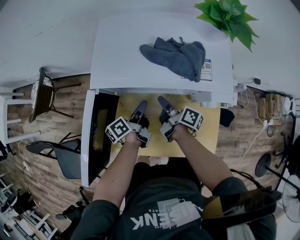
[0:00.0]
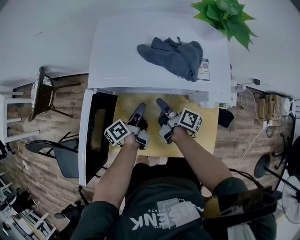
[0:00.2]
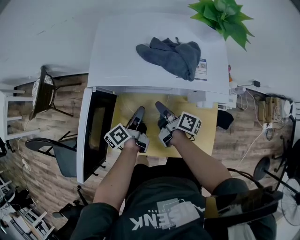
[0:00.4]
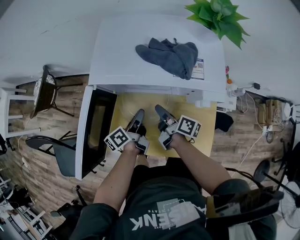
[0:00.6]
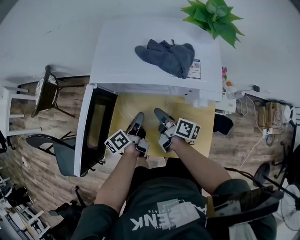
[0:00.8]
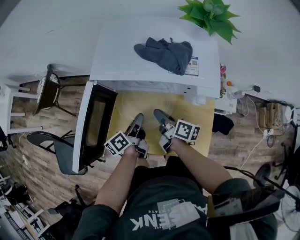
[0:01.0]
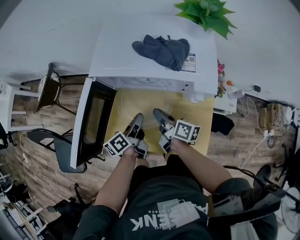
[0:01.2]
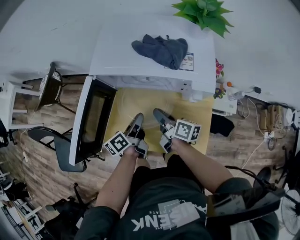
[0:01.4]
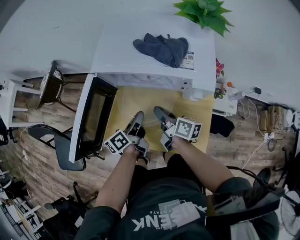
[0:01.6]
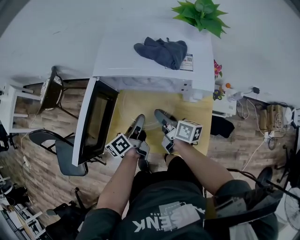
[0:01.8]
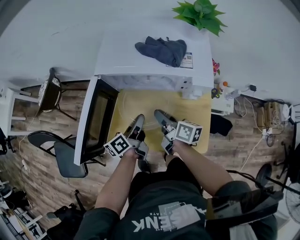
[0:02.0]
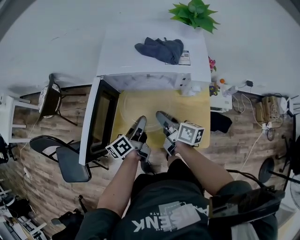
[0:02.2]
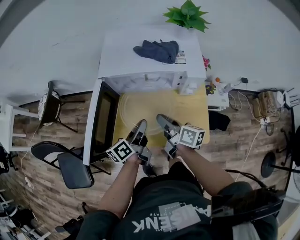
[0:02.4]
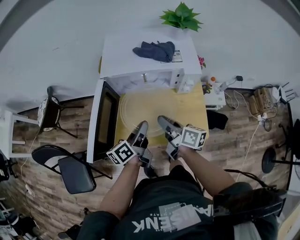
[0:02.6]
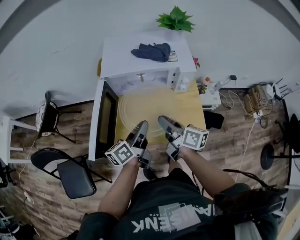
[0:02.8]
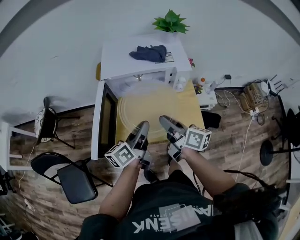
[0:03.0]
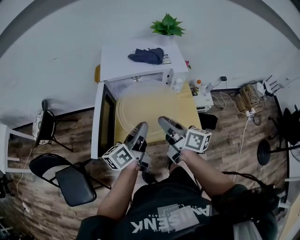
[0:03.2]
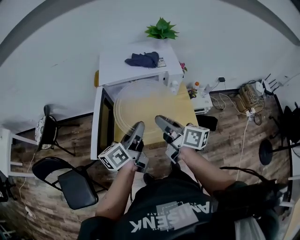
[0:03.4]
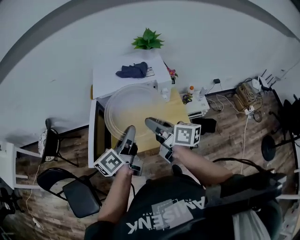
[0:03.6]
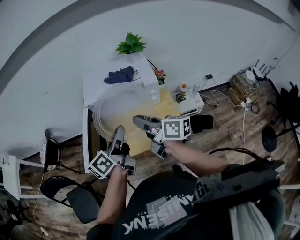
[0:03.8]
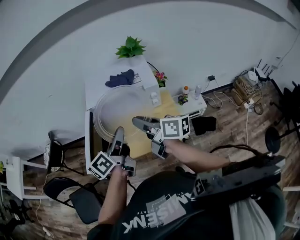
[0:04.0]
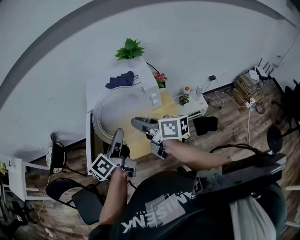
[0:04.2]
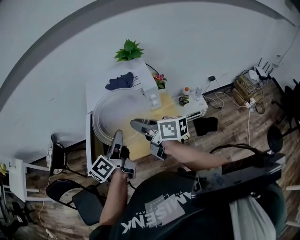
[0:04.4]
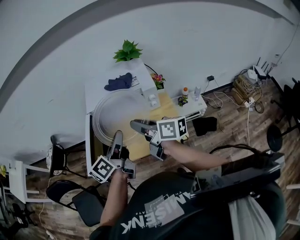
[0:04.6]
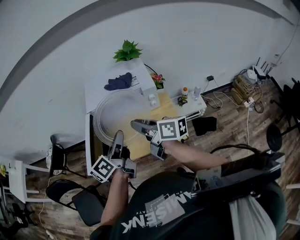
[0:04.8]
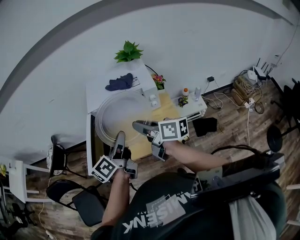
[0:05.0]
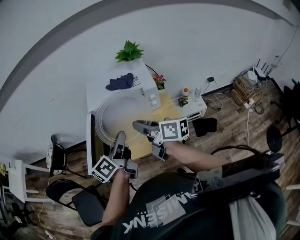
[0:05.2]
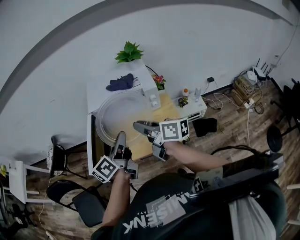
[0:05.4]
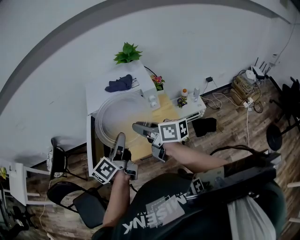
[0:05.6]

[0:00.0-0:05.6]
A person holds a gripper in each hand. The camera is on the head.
0:00.0 to 0:01.4: Both grippers move backward, roughly 10 cm. The right gripper rotates some 20 degrees.
0:01.4 to 0:02.8: Both grippers travel together upward and backward, approximately 15 cm. The left gripper swivels approximately 20 degrees.
0:02.8 to 0:04.2: The two grippers go roughly 15 cm upward.
0:04.2 to 0:05.6: The grippers stay close to where they were, moving slightly.

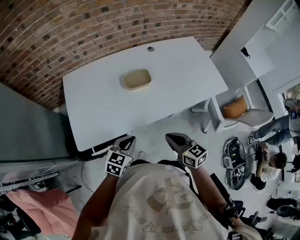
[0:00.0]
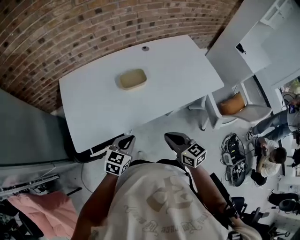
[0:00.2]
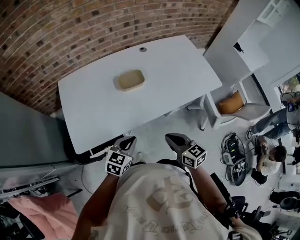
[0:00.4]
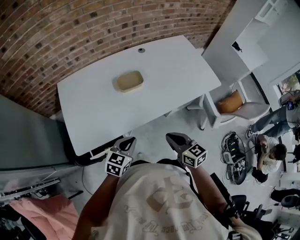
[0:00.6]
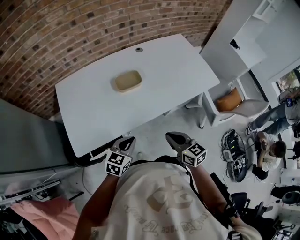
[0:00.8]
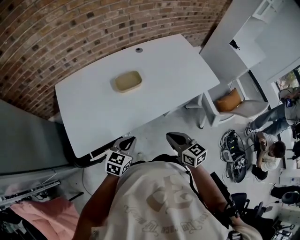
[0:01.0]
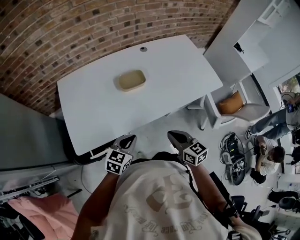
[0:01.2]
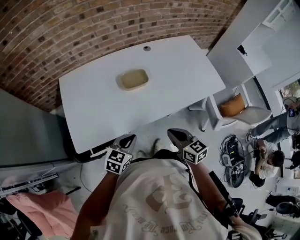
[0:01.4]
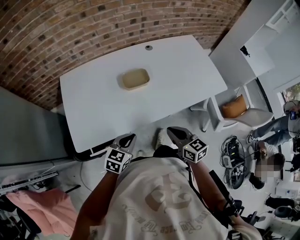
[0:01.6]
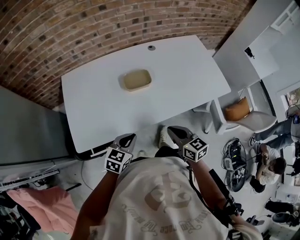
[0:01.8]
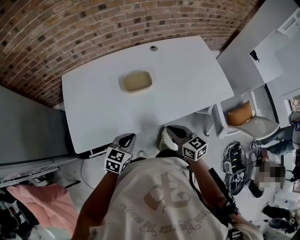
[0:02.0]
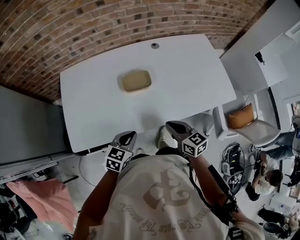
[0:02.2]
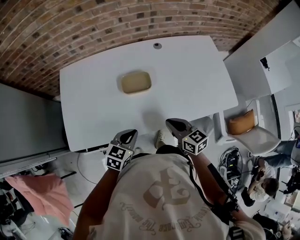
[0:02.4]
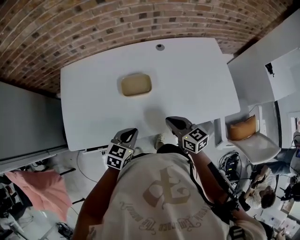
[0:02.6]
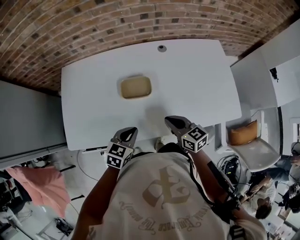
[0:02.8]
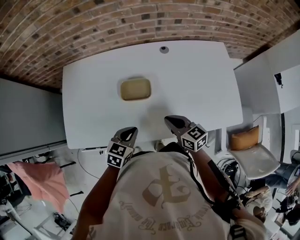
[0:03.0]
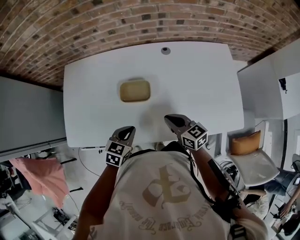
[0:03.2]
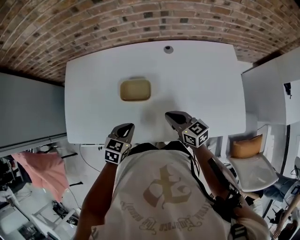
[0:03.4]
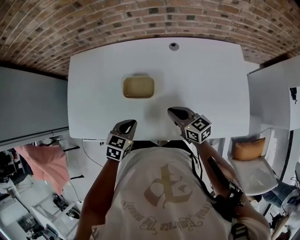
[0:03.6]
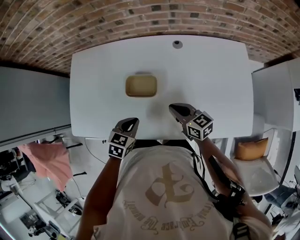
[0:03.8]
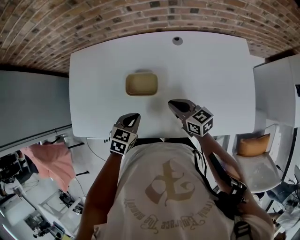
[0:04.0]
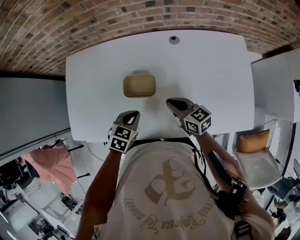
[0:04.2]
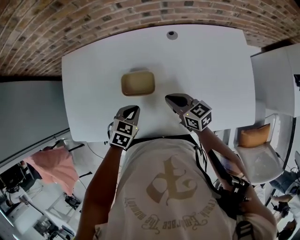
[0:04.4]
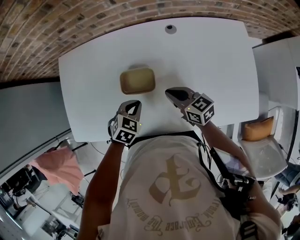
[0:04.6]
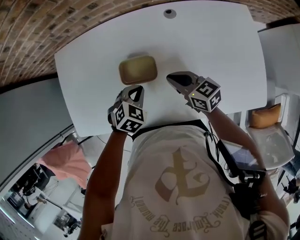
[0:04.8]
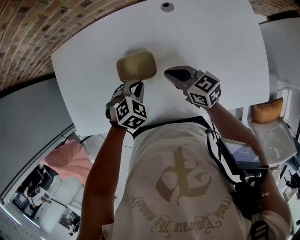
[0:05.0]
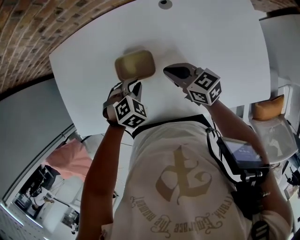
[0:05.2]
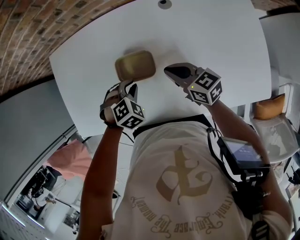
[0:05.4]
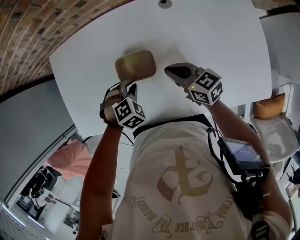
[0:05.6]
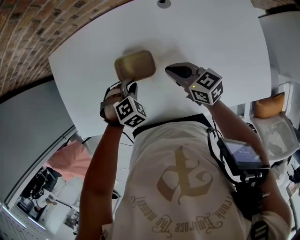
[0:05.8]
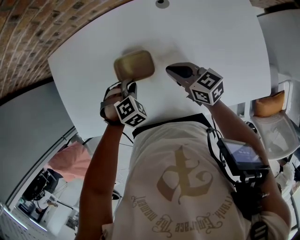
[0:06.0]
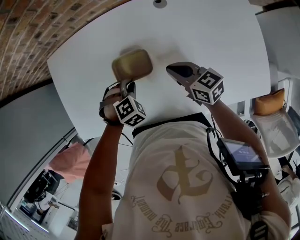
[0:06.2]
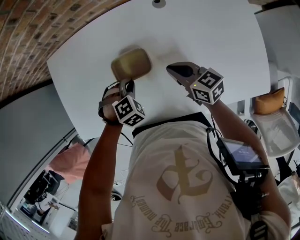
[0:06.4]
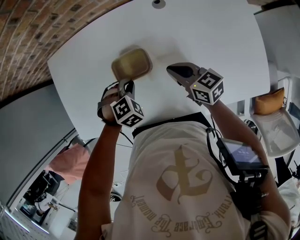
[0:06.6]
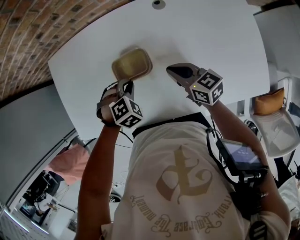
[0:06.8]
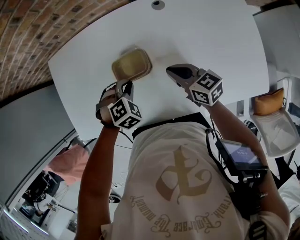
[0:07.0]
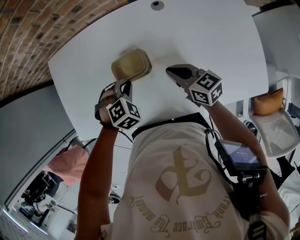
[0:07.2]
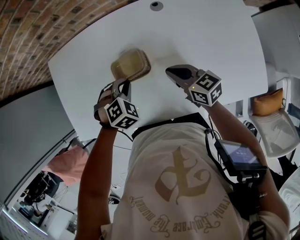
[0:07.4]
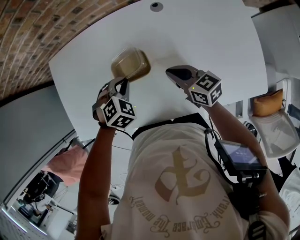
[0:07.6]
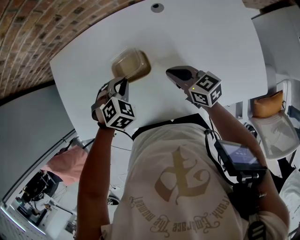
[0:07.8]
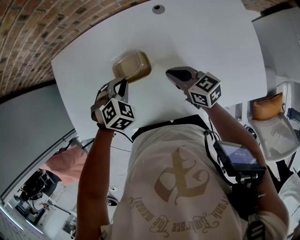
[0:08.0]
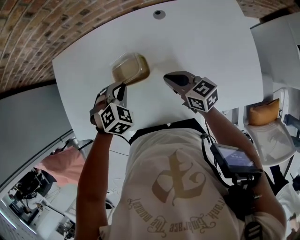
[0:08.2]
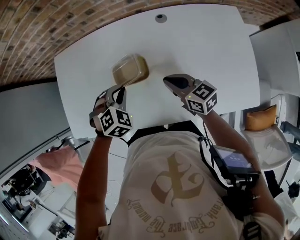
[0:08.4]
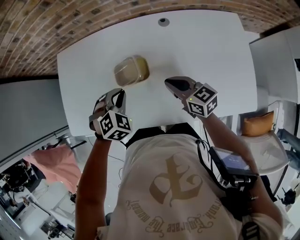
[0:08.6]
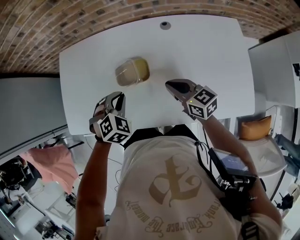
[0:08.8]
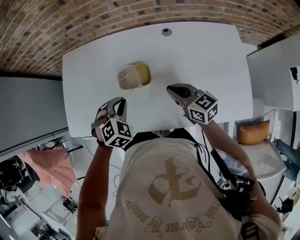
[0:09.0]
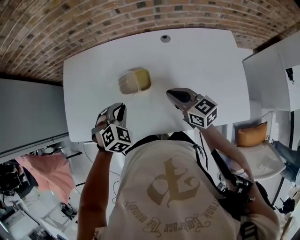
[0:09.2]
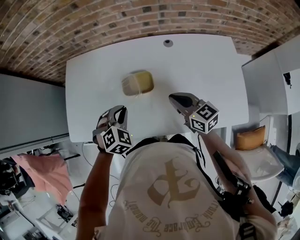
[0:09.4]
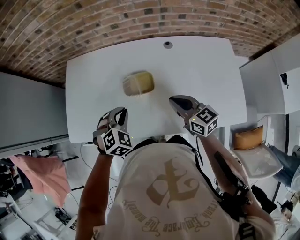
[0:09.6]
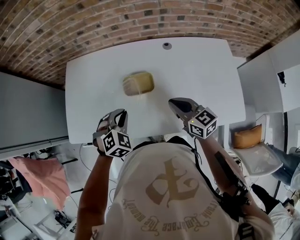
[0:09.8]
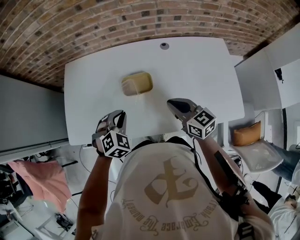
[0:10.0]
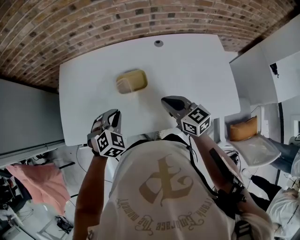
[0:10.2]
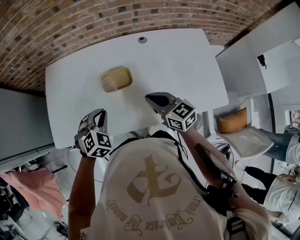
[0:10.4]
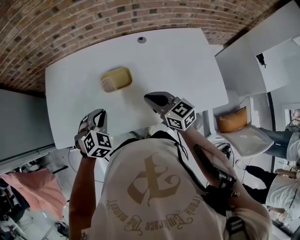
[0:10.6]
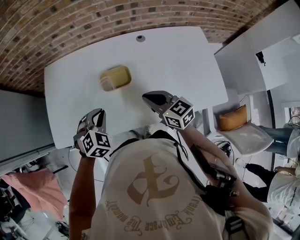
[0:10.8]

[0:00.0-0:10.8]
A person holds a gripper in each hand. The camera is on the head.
0:00.0 to 0:01.6: The grippers move only a little.
0:01.6 to 0:03.0: The right gripper goes some 20 cm forward, and swivels approximately 20 degrees; the left gripper shifts some 20 cm forward and to the right.
0:03.0 to 0:04.6: The right gripper shifts roughly 10 cm forward, while the left gripper heads forward and downward, covering approximately 10 cm, and swivels about 20 degrees.
0:04.6 to 0:06.2: The left gripper goes some 5 cm downward, and changes its angle by some 40 degrees.
0:06.2 to 0:07.8: The left gripper heads upward, covering some 5 cm.
0:07.8 to 0:09.2: The left gripper moves backward and upward, some 10 cm. Meanwhile the right gripper goes approximately 10 cm upward.
0:09.2 to 0:10.8: The left gripper shifts by roughly 5 cm. The right gripper travels to the left by some 5 cm.

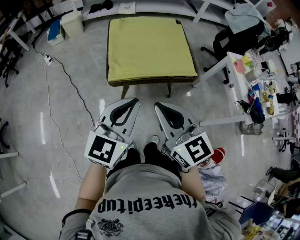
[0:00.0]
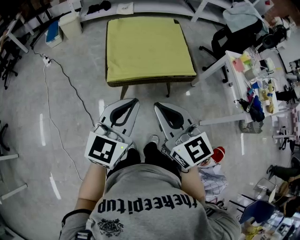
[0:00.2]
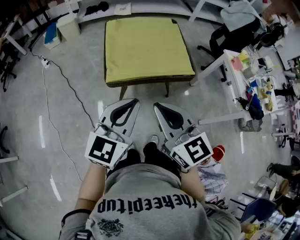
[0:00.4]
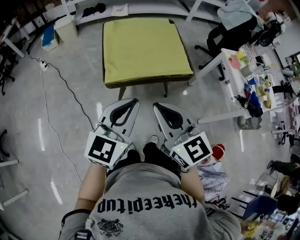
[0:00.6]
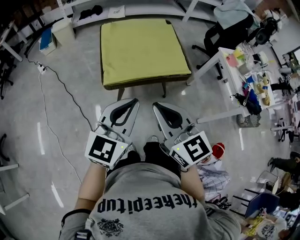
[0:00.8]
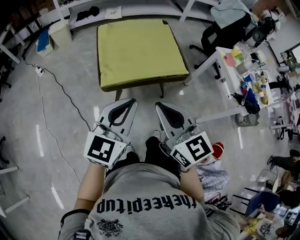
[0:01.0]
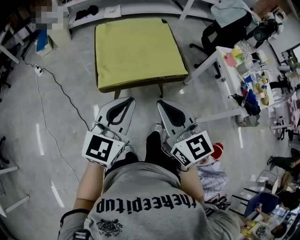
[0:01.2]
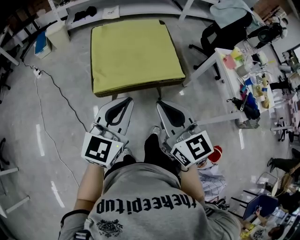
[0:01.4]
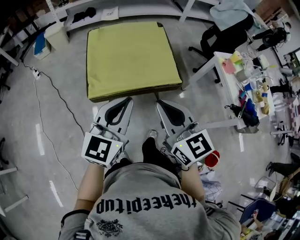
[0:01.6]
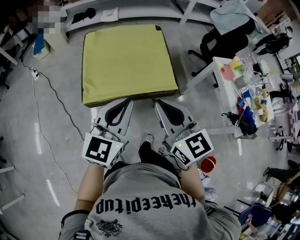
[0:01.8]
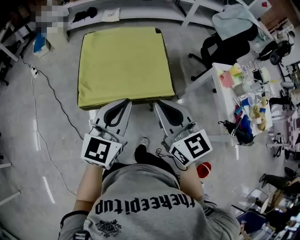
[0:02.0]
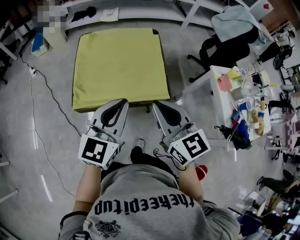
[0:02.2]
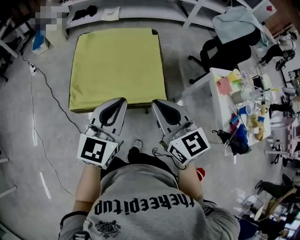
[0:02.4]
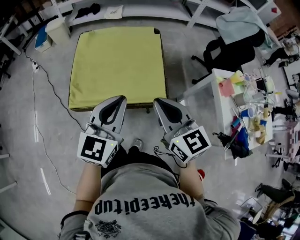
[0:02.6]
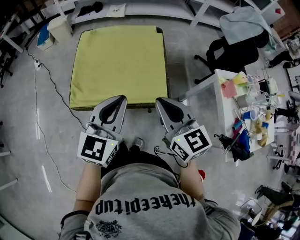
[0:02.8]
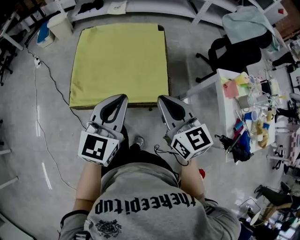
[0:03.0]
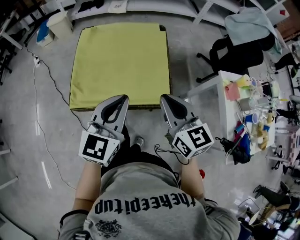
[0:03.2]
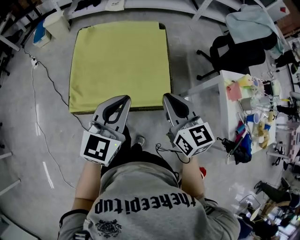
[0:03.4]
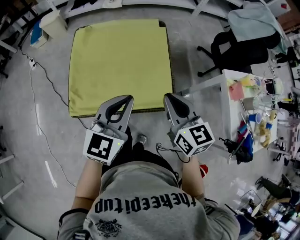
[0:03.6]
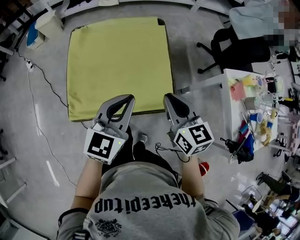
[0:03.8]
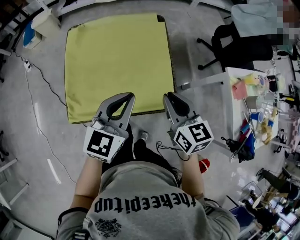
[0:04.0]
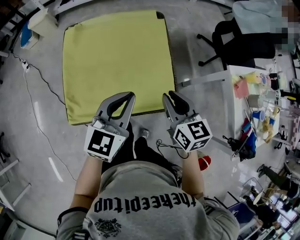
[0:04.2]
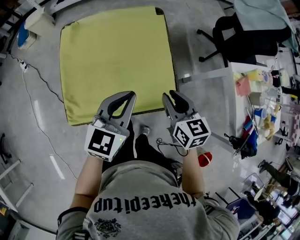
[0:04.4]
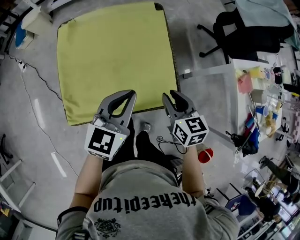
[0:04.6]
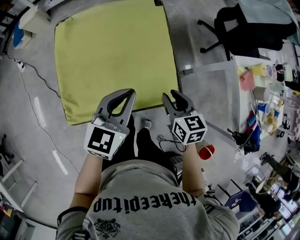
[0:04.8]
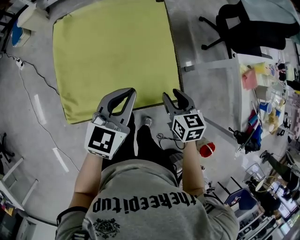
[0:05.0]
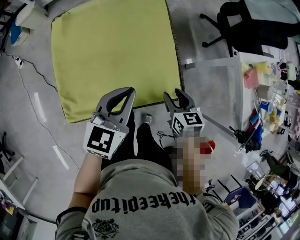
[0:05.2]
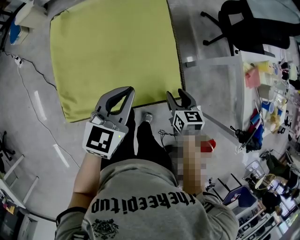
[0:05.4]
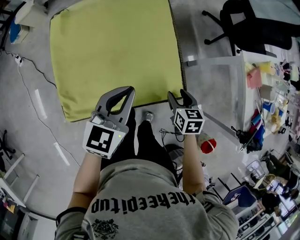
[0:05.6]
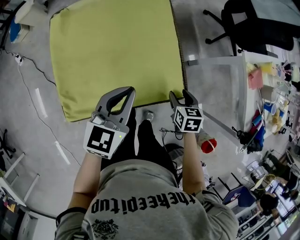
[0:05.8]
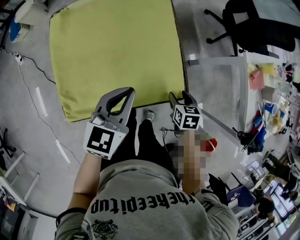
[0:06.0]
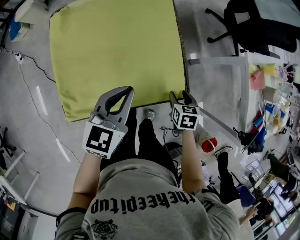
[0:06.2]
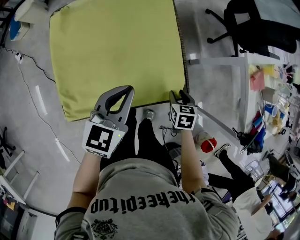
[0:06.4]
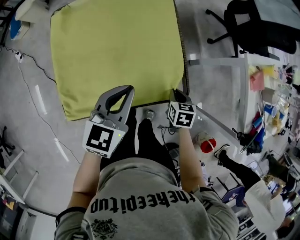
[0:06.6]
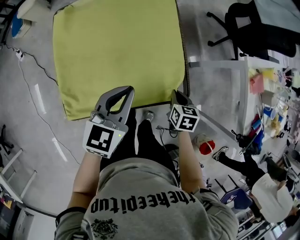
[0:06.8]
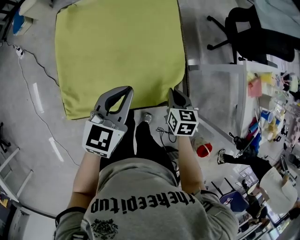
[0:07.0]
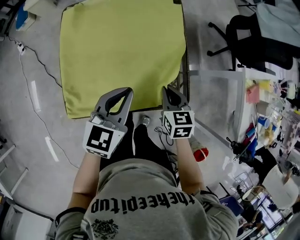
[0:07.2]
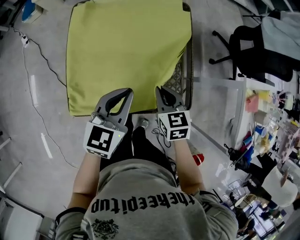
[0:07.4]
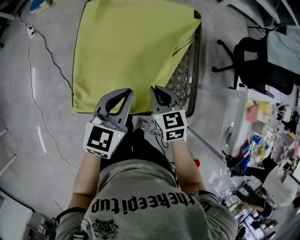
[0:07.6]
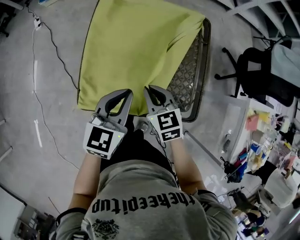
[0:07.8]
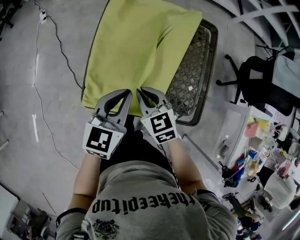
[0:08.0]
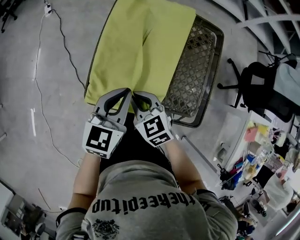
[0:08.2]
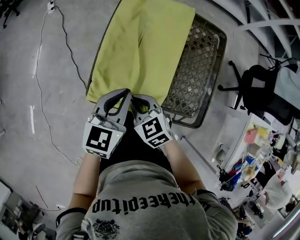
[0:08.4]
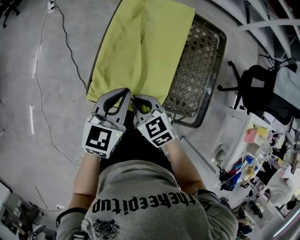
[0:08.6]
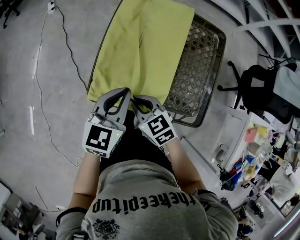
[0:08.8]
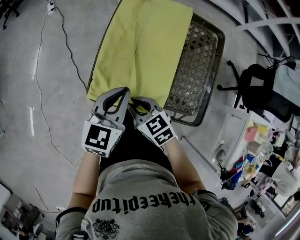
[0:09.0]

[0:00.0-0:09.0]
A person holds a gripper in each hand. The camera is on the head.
0:00.0 to 0:01.6: The left gripper heads forward and to the right, covering approximately 10 cm. Meanwhile the right gripper shifts approximately 15 cm to the right and forward.
0:01.6 to 0:03.0: The two grippers go roughly 20 cm forward and to the right.
0:03.0 to 0:04.4: The left gripper is displaced forward and downward by about 15 cm, while the right gripper travels downward and forward by about 15 cm, and turns by roughly 20 degrees.
0:04.4 to 0:06.0: The left gripper heads downward, covering about 5 cm. Meanwhile the right gripper goes approximately 20 cm downward, swivels roughly 30 degrees, and opens its fingers.
0:06.0 to 0:07.6: The left gripper shifts roughly 10 cm to the left; the right gripper moves to the left and upward, some 25 cm, changes its angle by approximately 40 degrees, and closes its fingers.
0:07.6 to 0:09.0: The left gripper shifts by roughly 10 cm; the right gripper changes place by some 20 cm, and swivels roughly 30 degrees.
